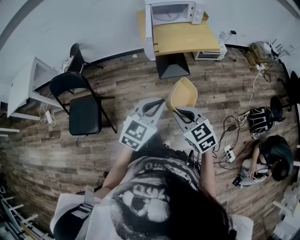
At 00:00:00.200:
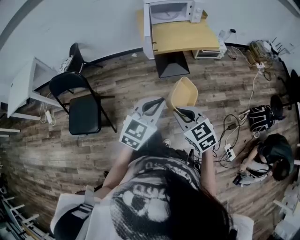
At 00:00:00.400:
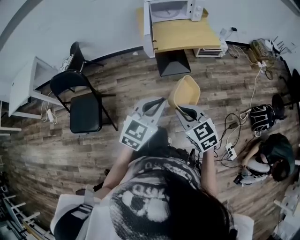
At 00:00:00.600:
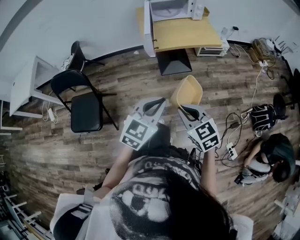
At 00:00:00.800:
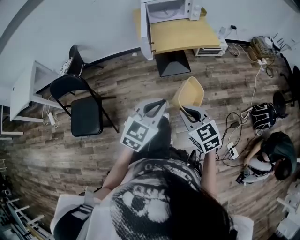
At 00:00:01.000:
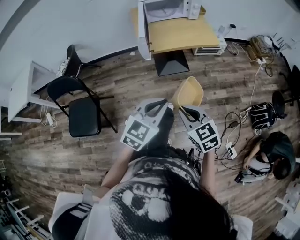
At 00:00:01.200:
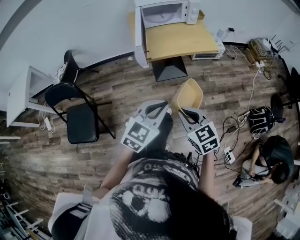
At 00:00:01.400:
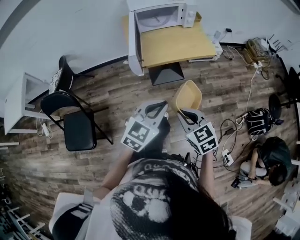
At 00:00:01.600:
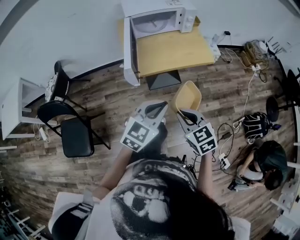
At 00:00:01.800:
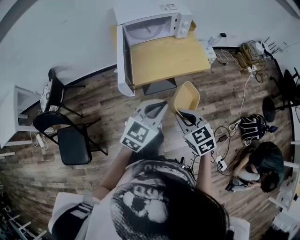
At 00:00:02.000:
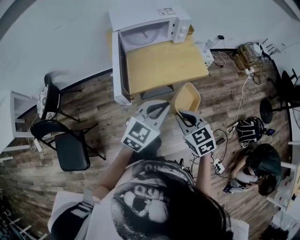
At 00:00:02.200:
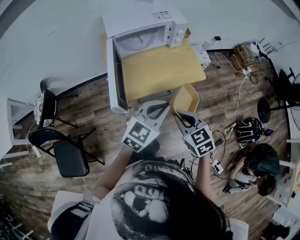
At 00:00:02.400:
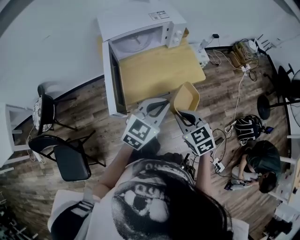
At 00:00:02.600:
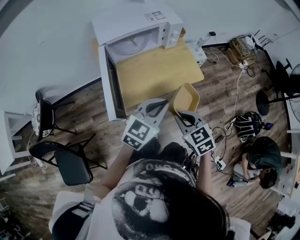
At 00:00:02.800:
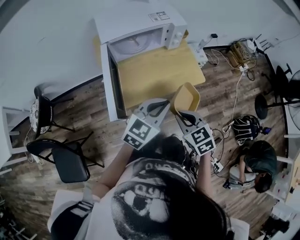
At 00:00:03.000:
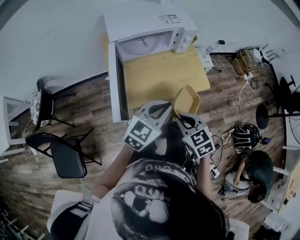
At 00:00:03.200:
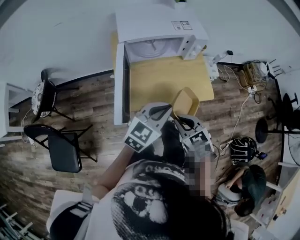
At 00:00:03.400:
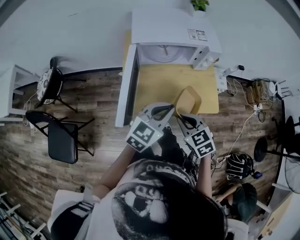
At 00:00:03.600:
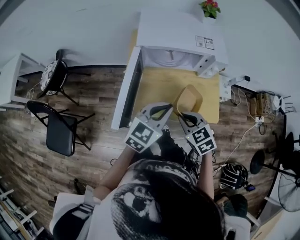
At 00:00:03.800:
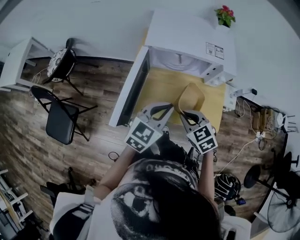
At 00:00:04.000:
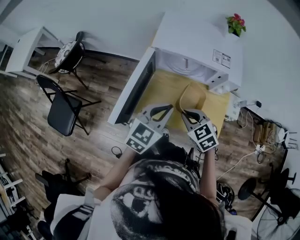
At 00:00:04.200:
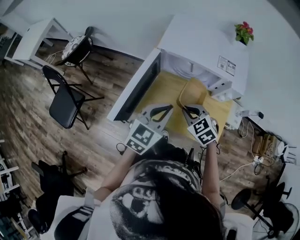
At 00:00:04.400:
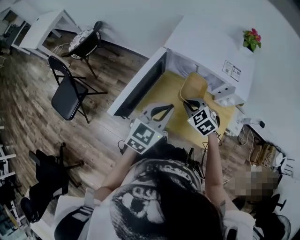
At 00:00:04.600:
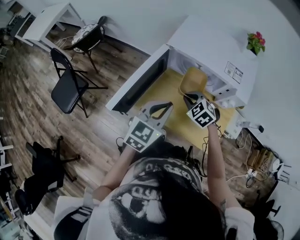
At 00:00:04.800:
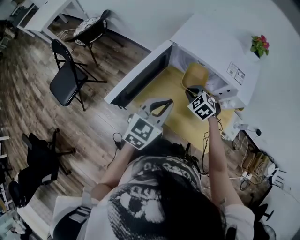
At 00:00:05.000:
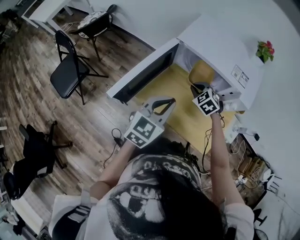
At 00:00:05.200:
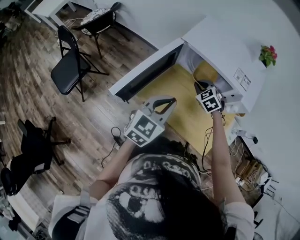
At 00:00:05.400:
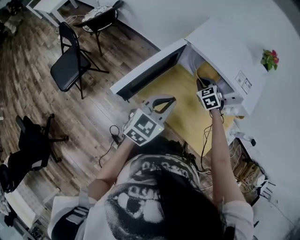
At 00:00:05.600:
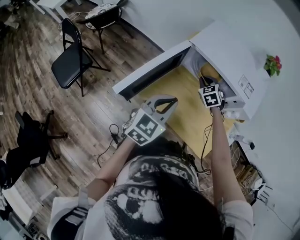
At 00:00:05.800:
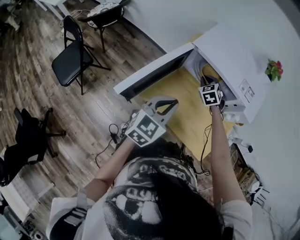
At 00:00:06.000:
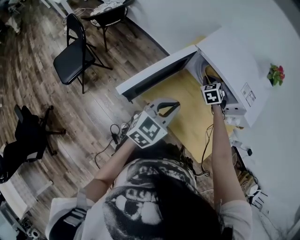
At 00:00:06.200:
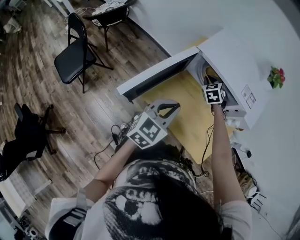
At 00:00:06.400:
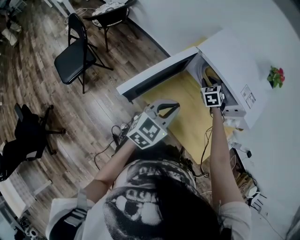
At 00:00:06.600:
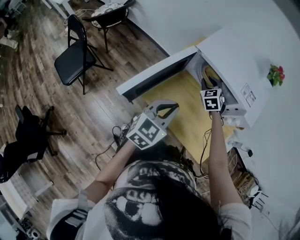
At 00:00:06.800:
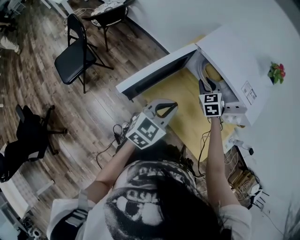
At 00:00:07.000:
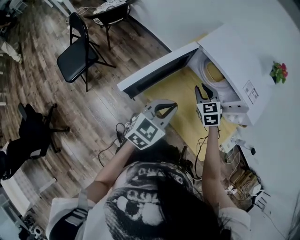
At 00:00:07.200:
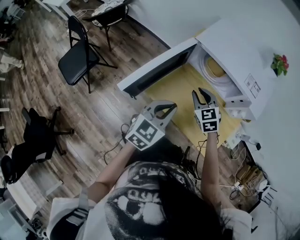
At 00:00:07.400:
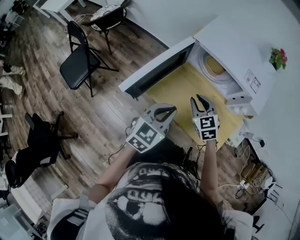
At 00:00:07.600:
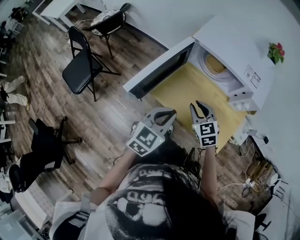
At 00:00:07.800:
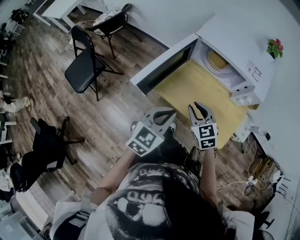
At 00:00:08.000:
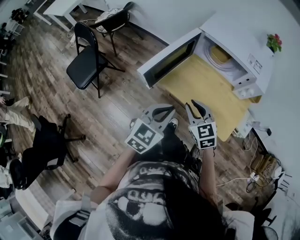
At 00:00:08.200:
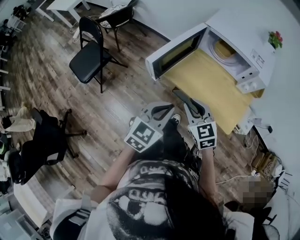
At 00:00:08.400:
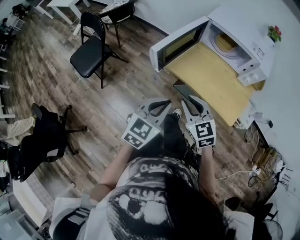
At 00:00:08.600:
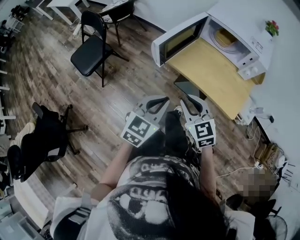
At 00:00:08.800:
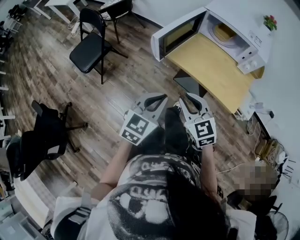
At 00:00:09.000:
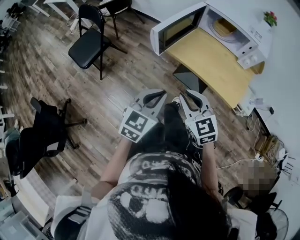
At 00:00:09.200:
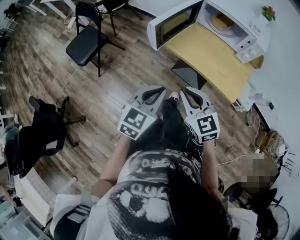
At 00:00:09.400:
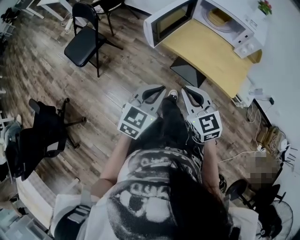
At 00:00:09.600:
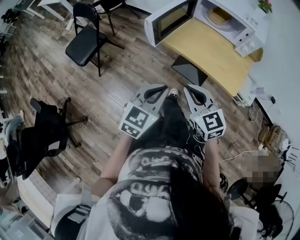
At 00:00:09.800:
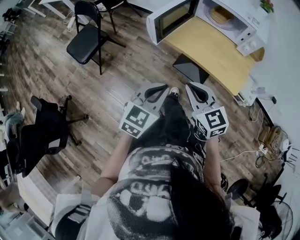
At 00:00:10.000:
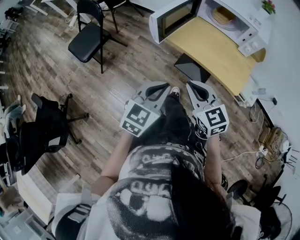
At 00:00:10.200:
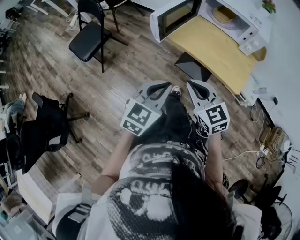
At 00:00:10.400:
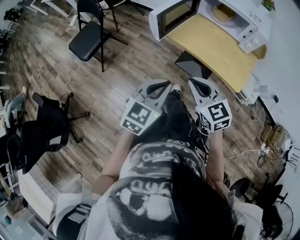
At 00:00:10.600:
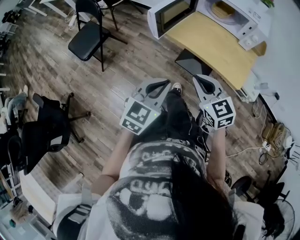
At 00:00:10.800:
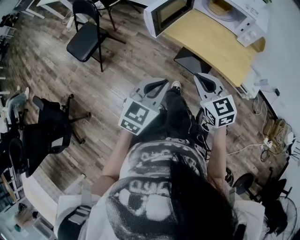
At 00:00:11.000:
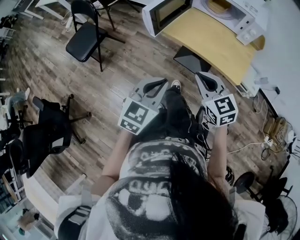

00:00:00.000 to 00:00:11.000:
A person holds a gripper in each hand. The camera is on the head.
00:00:00.000 to 00:00:01.600: The two grippers go about 20 cm forward and to the right.
00:00:01.600 to 00:00:03.200: The two grippers go some 25 cm forward.
00:00:03.200 to 00:00:04.800: The left gripper shifts by approximately 10 cm, and turns by roughly 50 degrees. The right gripper ends up roughly 30 cm from where it was, and rolls counterclockwise, seen from behind, by some 50 degrees.
00:00:04.800 to 00:00:06.200: The right gripper moves forward, roughly 15 cm.
00:00:06.200 to 00:00:07.800: The right gripper goes approximately 30 cm backward, and changes its angle by some 30 degrees. The left gripper travels backward by approximately 10 cm.
00:00:07.800 to 00:00:09.400: The left gripper is displaced backward and to the left by some 20 cm. The right gripper moves backward, about 25 cm.
00:00:09.400 to 00:00:11.000: The grippers stay close to where they were, moving slightly.

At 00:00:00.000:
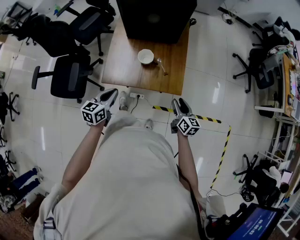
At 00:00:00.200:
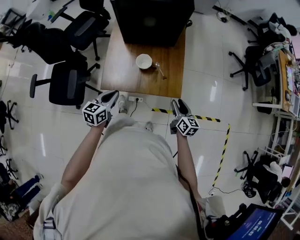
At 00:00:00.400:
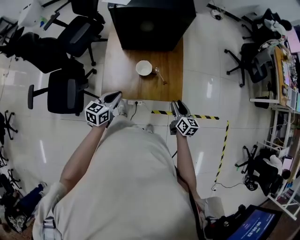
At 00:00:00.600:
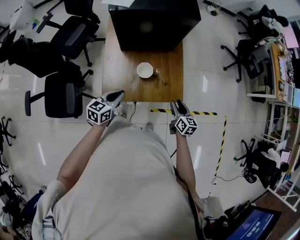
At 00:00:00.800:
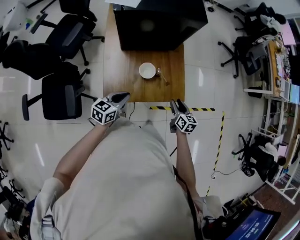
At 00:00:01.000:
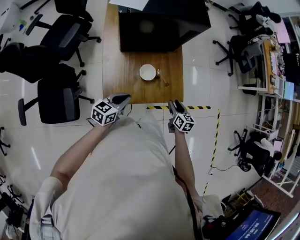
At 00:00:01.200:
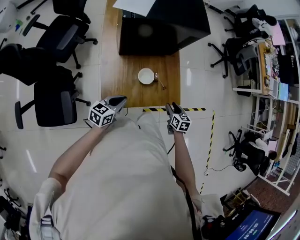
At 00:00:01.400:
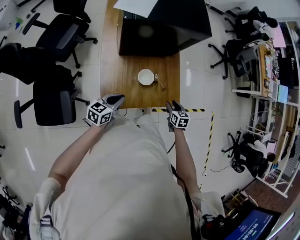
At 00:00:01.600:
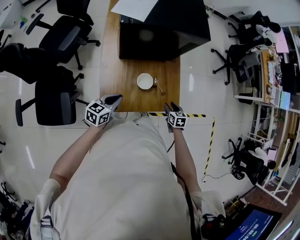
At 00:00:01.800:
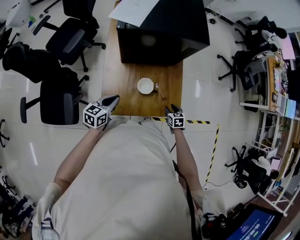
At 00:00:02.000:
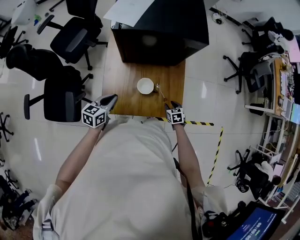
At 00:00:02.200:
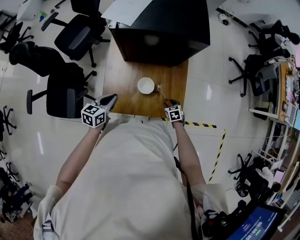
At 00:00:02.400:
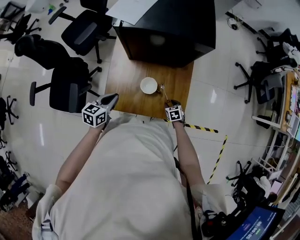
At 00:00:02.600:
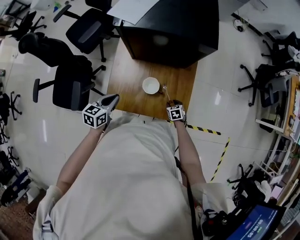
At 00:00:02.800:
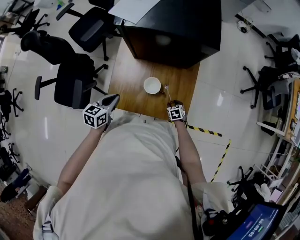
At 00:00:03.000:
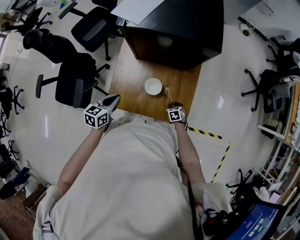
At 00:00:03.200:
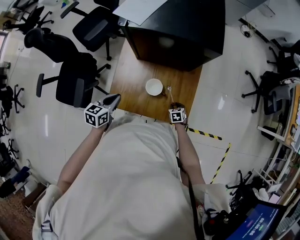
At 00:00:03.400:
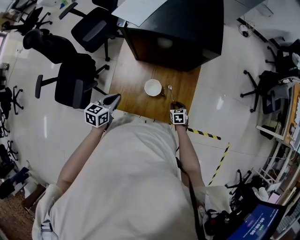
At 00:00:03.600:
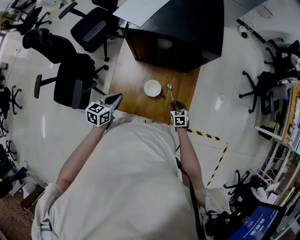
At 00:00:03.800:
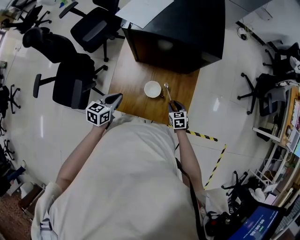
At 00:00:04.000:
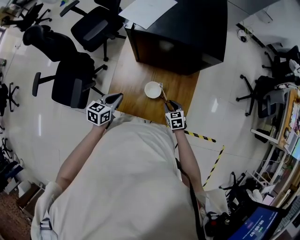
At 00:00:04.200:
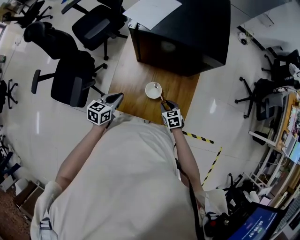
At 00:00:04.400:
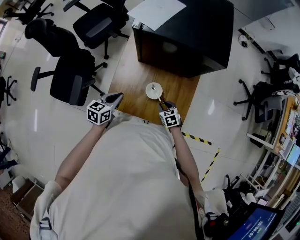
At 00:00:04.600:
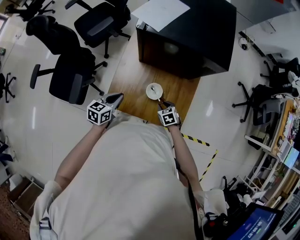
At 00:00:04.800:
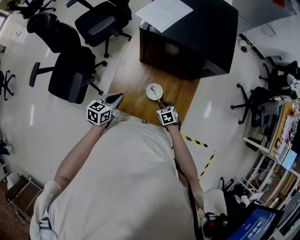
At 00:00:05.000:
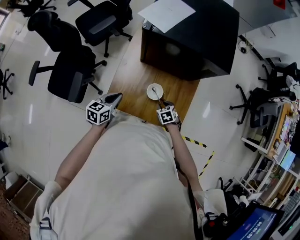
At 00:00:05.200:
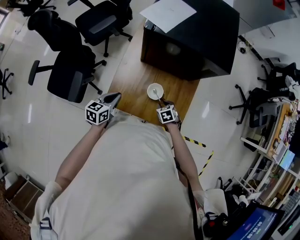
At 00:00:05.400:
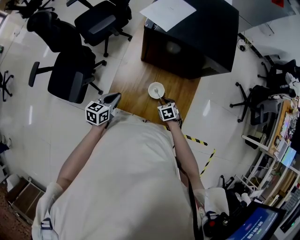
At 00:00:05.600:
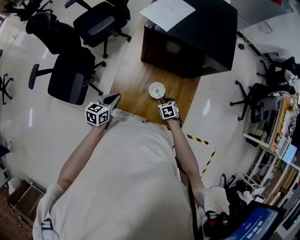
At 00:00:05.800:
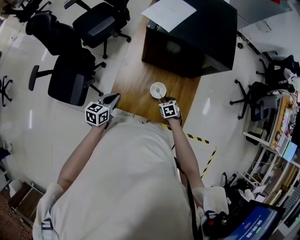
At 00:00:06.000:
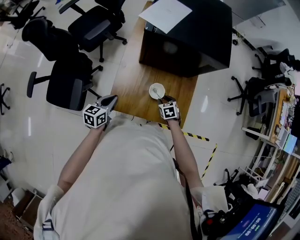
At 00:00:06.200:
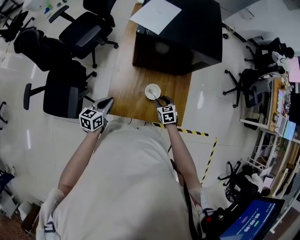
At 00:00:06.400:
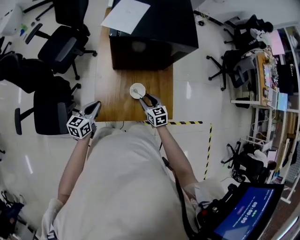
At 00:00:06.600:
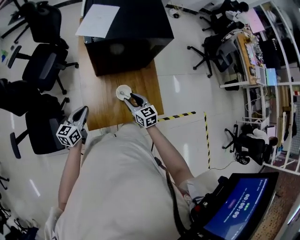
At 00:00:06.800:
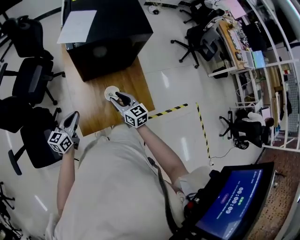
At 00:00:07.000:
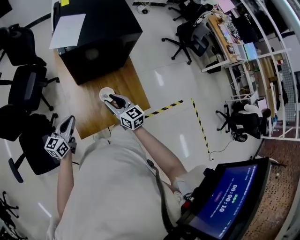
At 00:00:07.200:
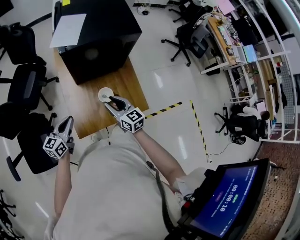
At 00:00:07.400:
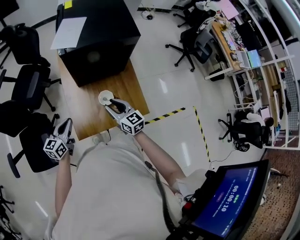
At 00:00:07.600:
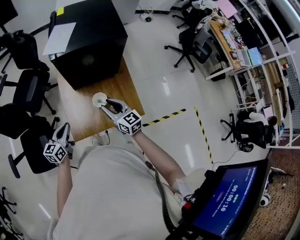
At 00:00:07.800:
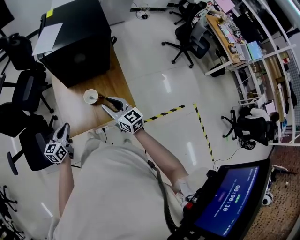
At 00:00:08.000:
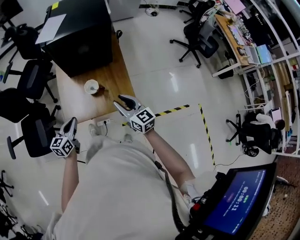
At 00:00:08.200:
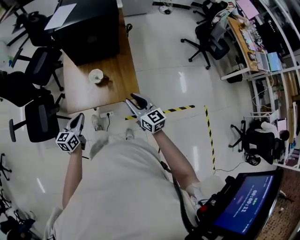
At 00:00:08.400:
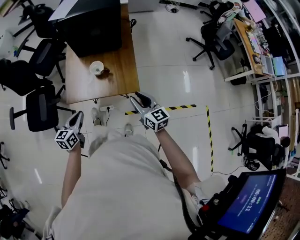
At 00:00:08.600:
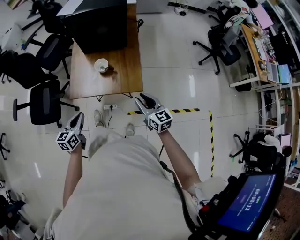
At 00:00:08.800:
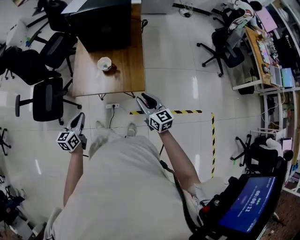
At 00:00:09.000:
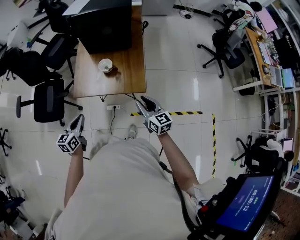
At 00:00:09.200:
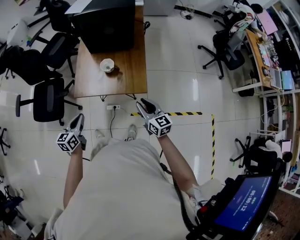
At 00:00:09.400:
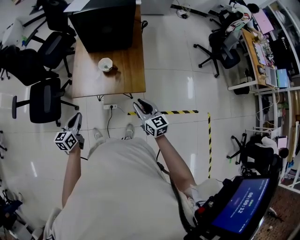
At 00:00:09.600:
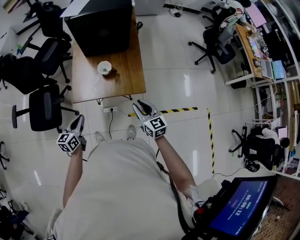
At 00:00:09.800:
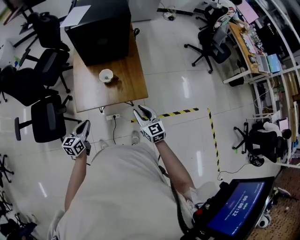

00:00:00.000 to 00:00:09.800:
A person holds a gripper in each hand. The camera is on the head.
00:00:00.000 to 00:00:01.400: The left gripper is displaced forward and to the left by some 15 cm, and swivels about 30 degrees. The right gripper moves to the left, forward and downward, roughly 15 cm, and turns by some 30 degrees.
00:00:01.400 to 00:00:02.800: The right gripper goes about 15 cm downward, and turns by about 40 degrees; the left gripper changes its angle by some 30 degrees.
00:00:02.800 to 00:00:04.200: The right gripper shifts some 15 cm upward and to the left.
00:00:04.200 to 00:00:05.600: The grippers make only small movements.
00:00:05.600 to 00:00:07.000: The left gripper shifts approximately 10 cm upward, and changes its angle by roughly 30 degrees; the right gripper moves upward, approximately 25 cm, and angles its fingers upward, by approximately 50 degrees.
00:00:07.000 to 00:00:08.400: The right gripper travels to the right and backward by about 35 cm; the left gripper moves backward and to the right, approximately 30 cm, and swivels approximately 20 degrees.
00:00:08.400 to 00:00:09.800: Both grippers move to the left, roughly 5 cm.

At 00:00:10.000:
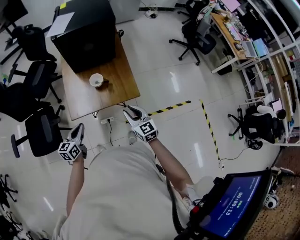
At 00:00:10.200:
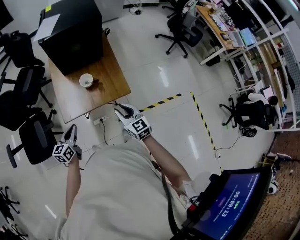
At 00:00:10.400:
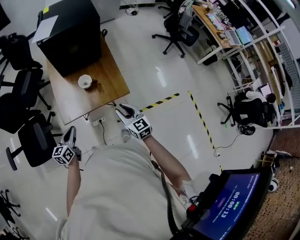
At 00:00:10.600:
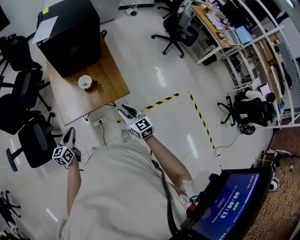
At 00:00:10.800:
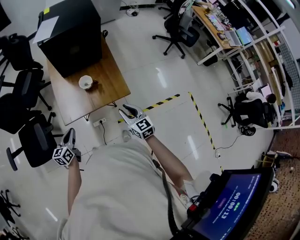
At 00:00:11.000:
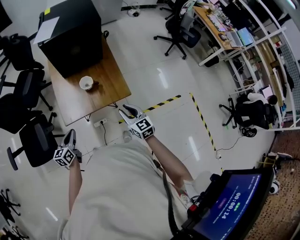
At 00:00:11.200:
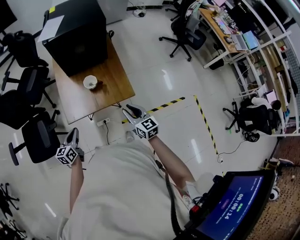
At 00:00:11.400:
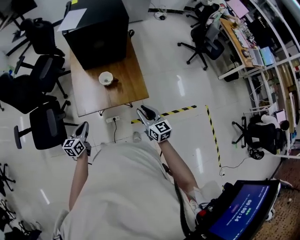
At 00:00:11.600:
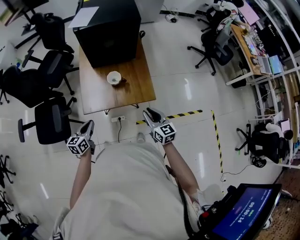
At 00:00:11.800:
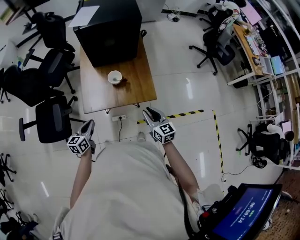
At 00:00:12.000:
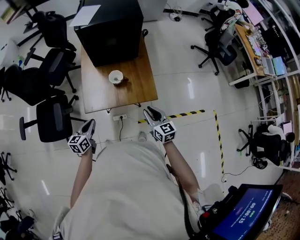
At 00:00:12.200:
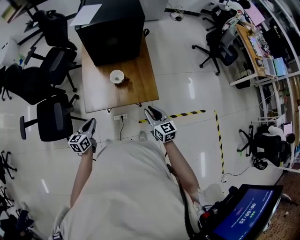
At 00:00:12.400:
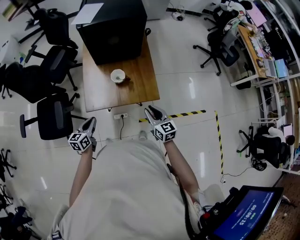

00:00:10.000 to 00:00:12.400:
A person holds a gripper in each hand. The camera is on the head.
00:00:10.000 to 00:00:12.400: The grippers make only small movements.
